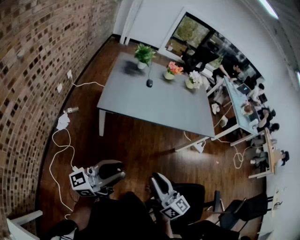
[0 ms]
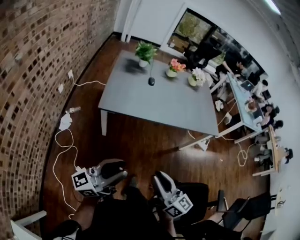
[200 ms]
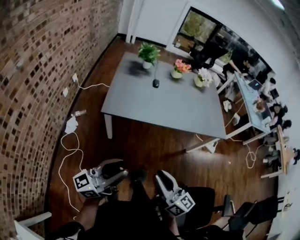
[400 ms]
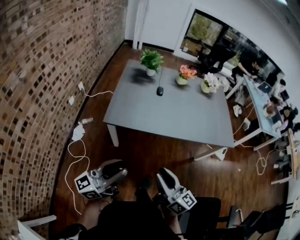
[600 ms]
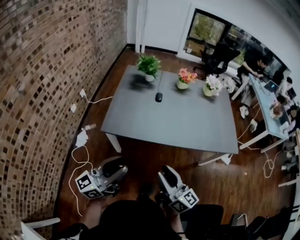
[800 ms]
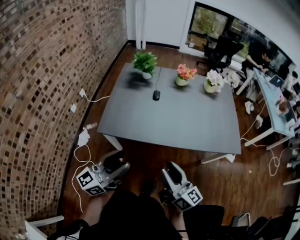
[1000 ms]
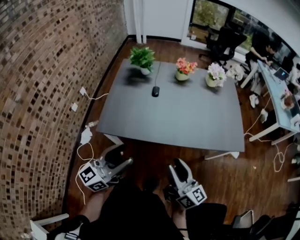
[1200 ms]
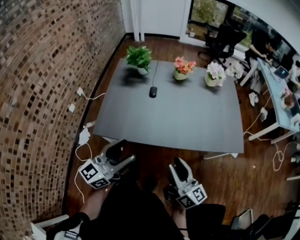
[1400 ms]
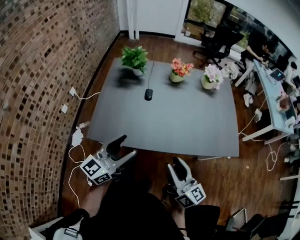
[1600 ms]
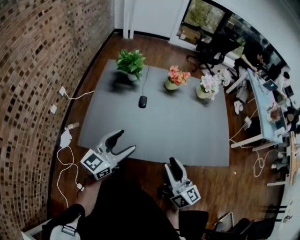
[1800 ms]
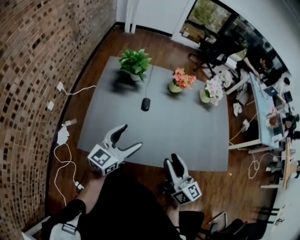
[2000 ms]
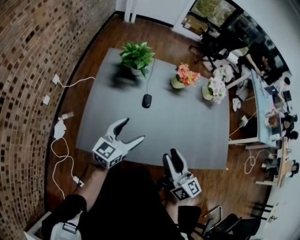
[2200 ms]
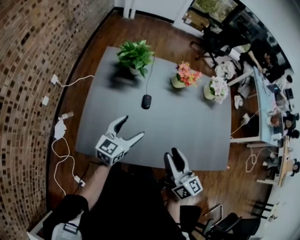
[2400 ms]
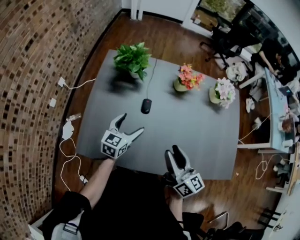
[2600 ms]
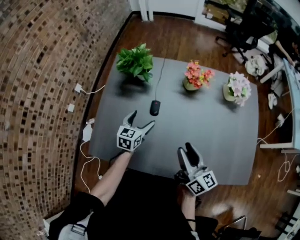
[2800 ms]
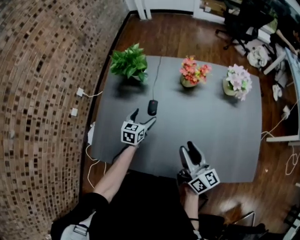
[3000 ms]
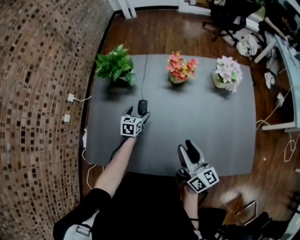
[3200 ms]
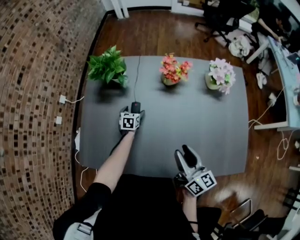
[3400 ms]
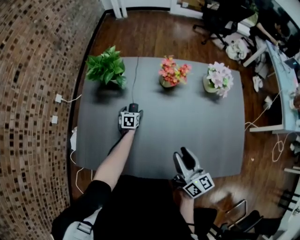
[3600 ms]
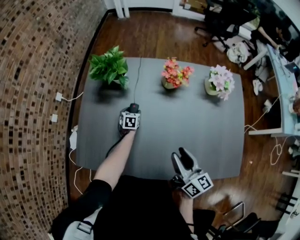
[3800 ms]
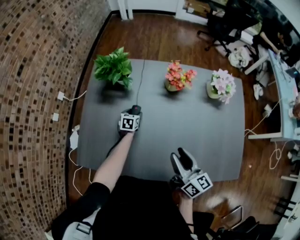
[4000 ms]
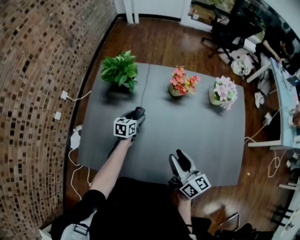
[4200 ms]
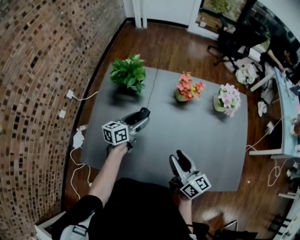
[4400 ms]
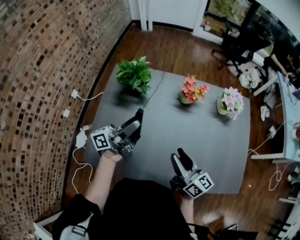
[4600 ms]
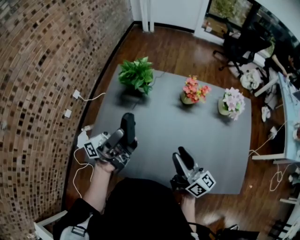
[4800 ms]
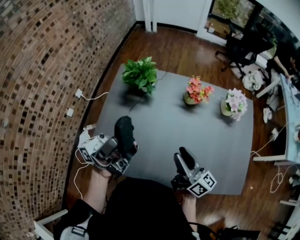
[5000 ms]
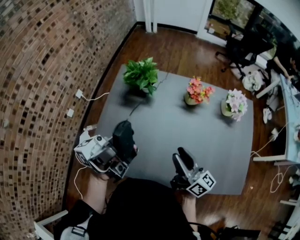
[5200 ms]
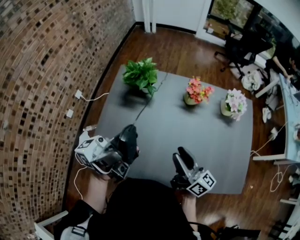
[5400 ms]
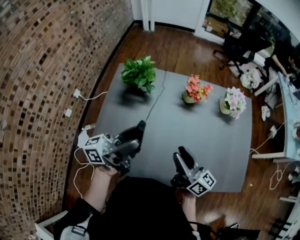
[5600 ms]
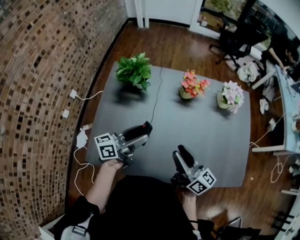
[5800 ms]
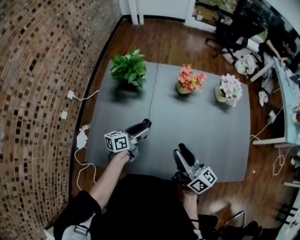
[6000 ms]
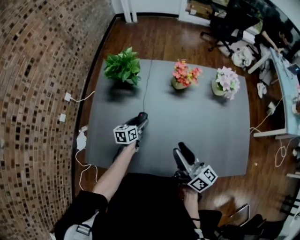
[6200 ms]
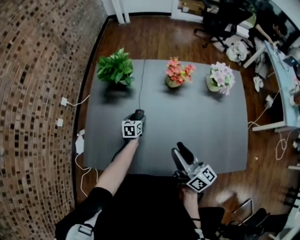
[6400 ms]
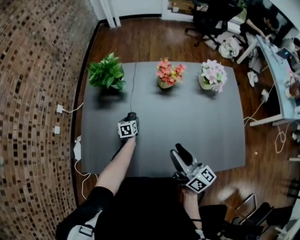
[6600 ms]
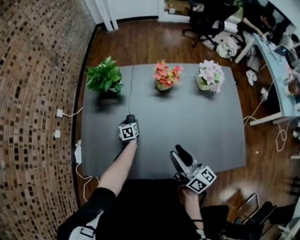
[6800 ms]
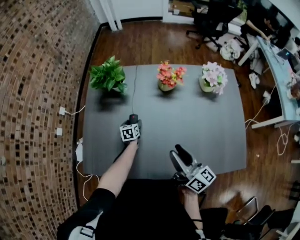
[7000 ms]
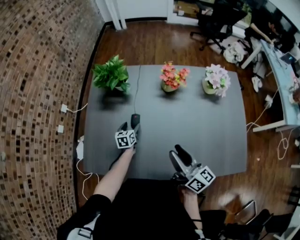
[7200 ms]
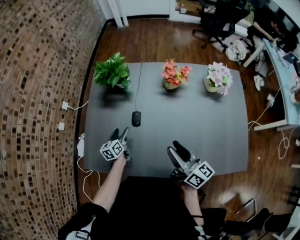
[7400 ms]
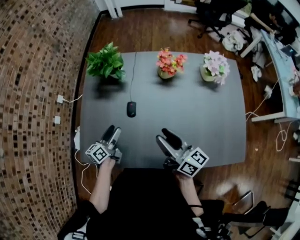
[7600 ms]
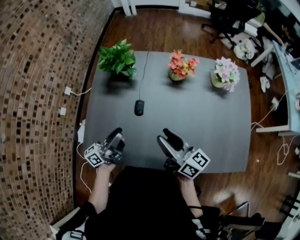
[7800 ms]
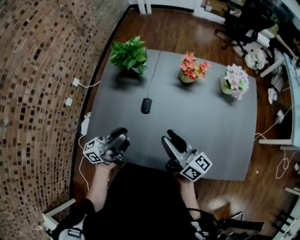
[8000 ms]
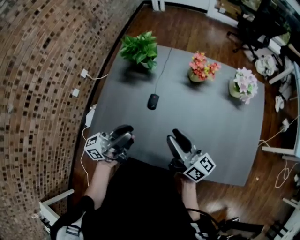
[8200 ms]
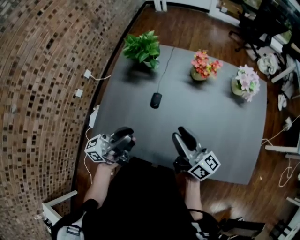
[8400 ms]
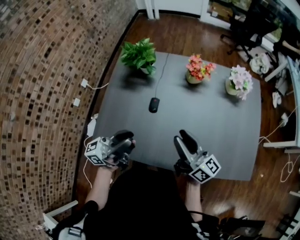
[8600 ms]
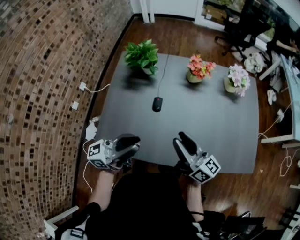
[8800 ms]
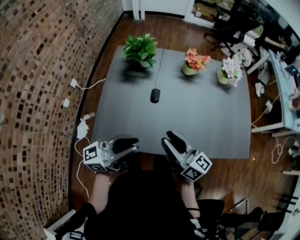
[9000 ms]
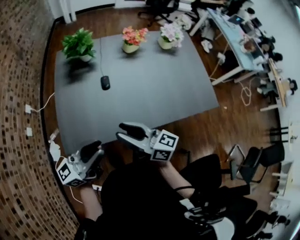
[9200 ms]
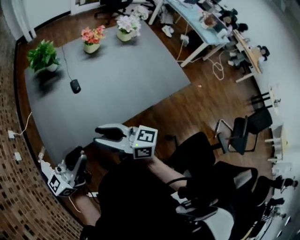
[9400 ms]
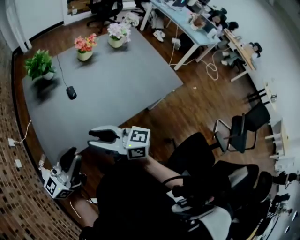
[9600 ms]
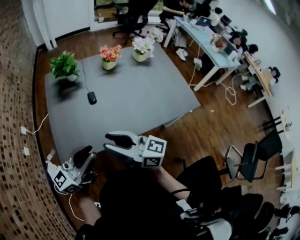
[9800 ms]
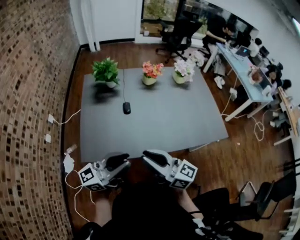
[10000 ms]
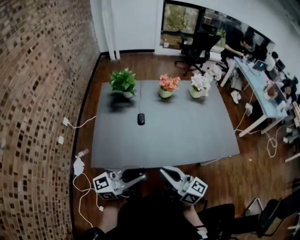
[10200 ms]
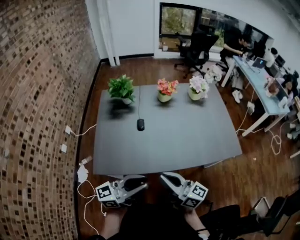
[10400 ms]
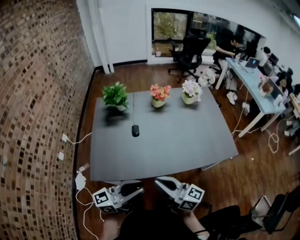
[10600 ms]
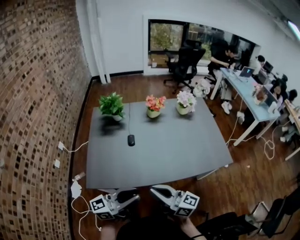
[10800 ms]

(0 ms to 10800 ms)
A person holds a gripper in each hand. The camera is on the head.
0 ms - 1600 ms: Both grippers are carried forward, approximately 40 cm. The left gripper swivels approximately 30 degrees, and opens.
1600 ms - 3000 ms: Both grippers travel together forward and downward, roughly 40 cm. The left gripper points its fingers some 40 degrees further downward.
3000 ms - 4600 ms: The right gripper ends up about 5 cm from where it was, while the left gripper travels upward by some 25 cm, and tilts its fingers approximately 60 degrees upward.
4600 ms - 6200 ms: The left gripper goes some 30 cm downward, and points its fingers roughly 60 degrees further downward.
6200 ms - 7800 ms: The left gripper moves upward and backward, some 20 cm, and angles its fingers upward, by approximately 50 degrees.
7800 ms - 9200 ms: The right gripper is displaced backward and to the left by about 25 cm. Meanwhile the left gripper moves backward and upward, approximately 25 cm, and swivels about 30 degrees.
9200 ms - 10800 ms: The right gripper travels backward and to the right by roughly 15 cm, and closes its fingers; the left gripper travels to the right and backward by roughly 15 cm.

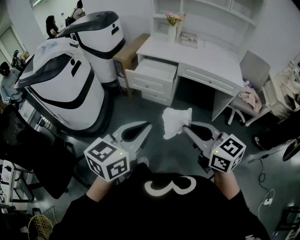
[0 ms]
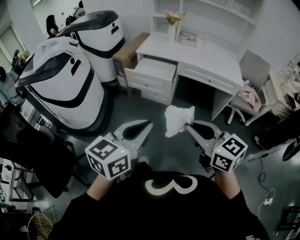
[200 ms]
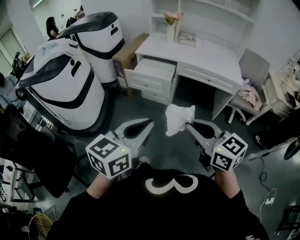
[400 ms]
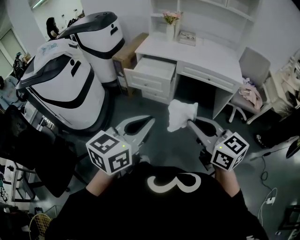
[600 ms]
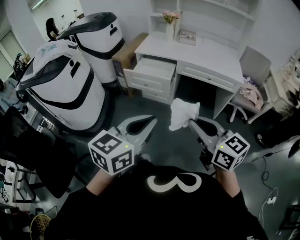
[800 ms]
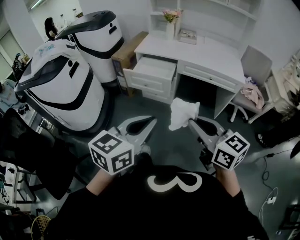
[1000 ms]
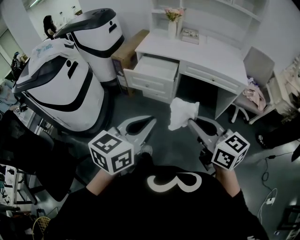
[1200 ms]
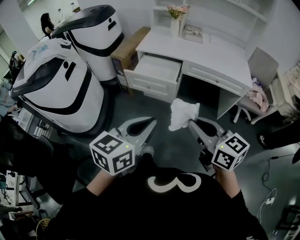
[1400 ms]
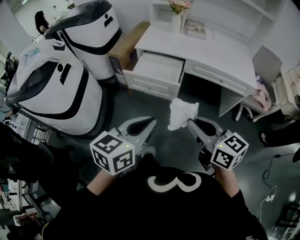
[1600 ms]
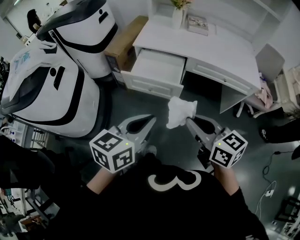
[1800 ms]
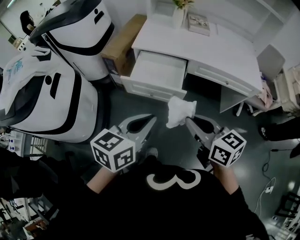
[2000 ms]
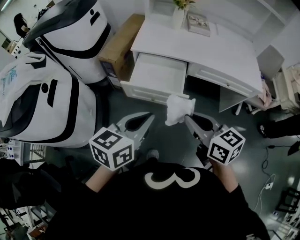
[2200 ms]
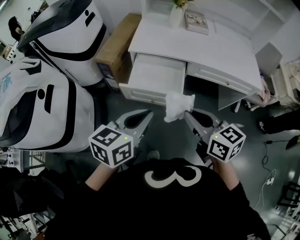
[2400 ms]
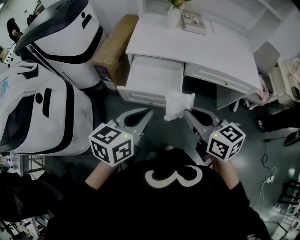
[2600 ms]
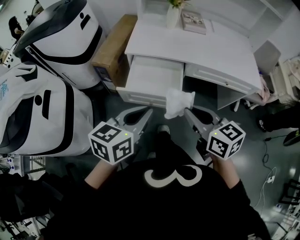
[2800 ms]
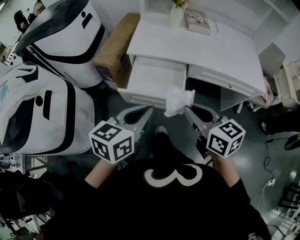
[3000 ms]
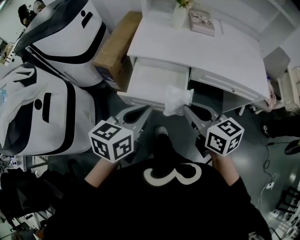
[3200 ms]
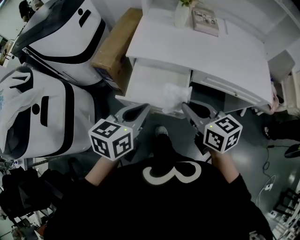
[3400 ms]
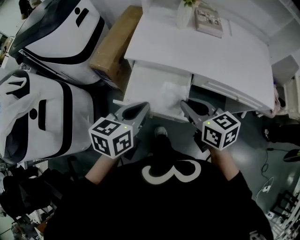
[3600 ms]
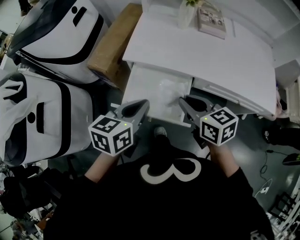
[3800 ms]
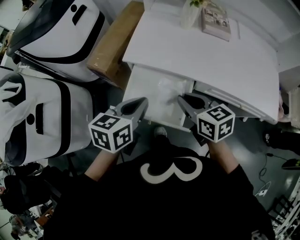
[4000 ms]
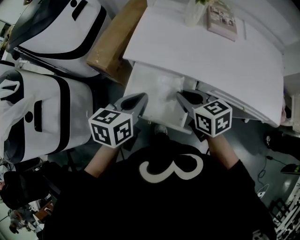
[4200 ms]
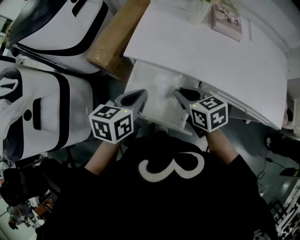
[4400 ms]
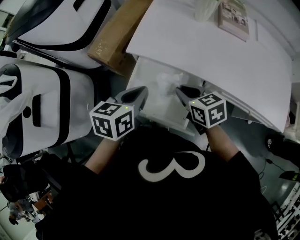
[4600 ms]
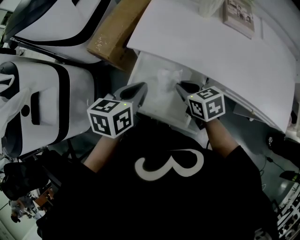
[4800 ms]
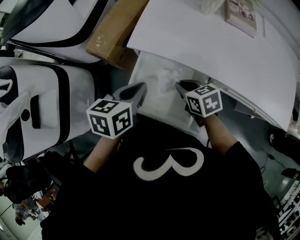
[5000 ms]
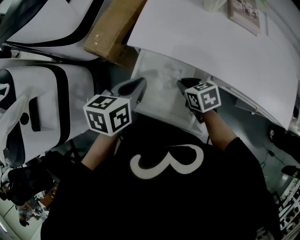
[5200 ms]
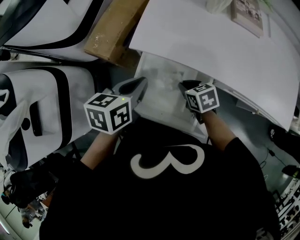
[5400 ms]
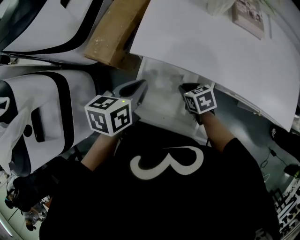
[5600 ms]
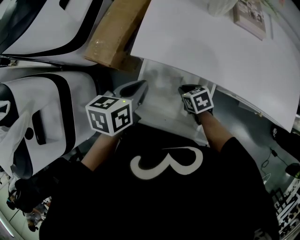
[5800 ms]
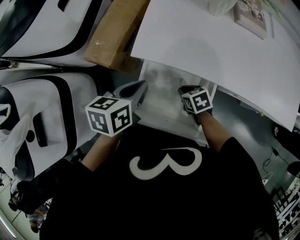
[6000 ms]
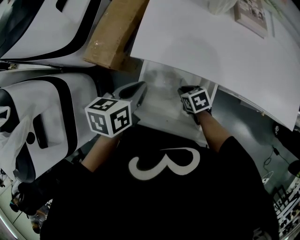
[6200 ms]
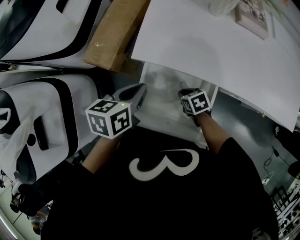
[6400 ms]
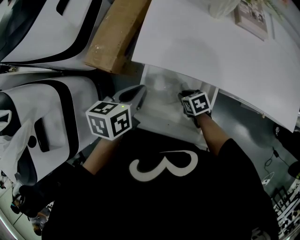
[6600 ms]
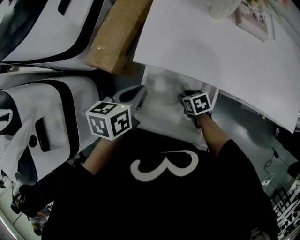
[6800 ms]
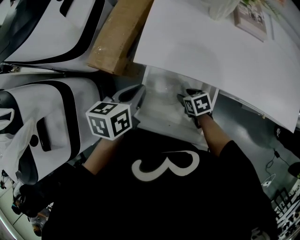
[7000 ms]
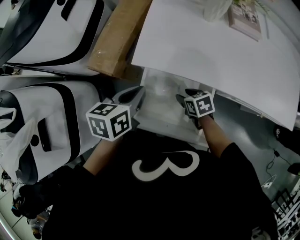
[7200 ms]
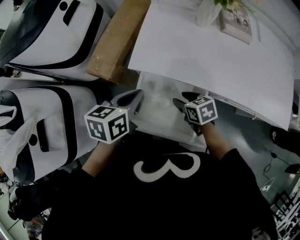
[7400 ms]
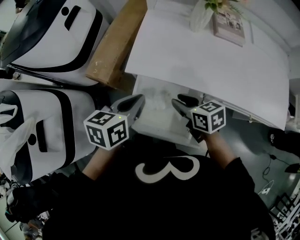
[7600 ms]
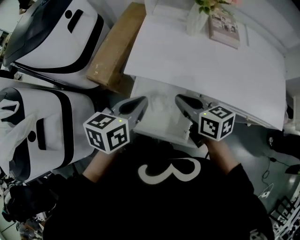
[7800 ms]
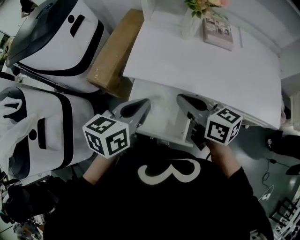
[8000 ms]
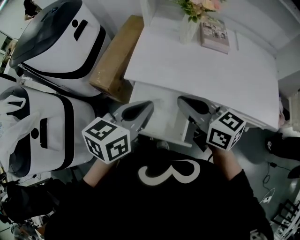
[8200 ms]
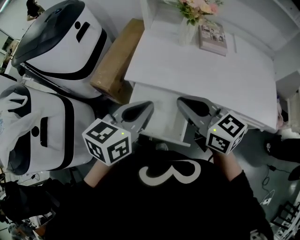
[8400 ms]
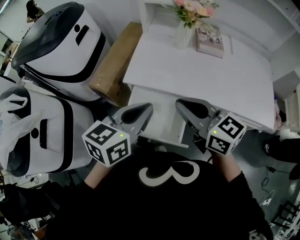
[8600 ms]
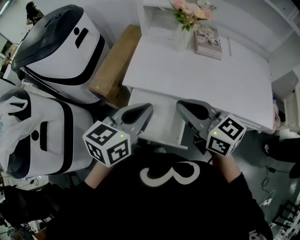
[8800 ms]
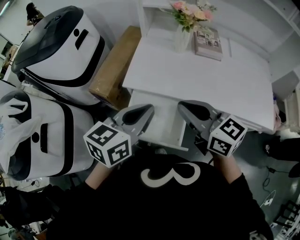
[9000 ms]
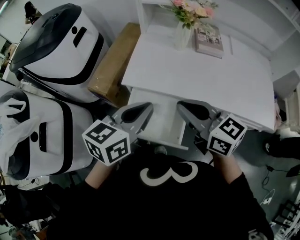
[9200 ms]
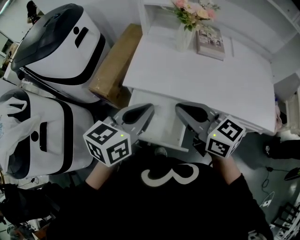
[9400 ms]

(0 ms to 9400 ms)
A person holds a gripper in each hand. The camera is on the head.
0 ms - 1600 ms: The grippers both shift forward by some 20 cm.
1600 ms - 3200 ms: The two grippers go approximately 30 cm forward.
3200 ms - 4800 ms: The grippers both shift forward and downward by roughly 30 cm. The left gripper swivels roughly 20 degrees, while the right gripper turns by approximately 30 degrees.
4800 ms - 6200 ms: The left gripper heads forward, covering roughly 10 cm, while the right gripper is displaced downward by roughly 15 cm.
6200 ms - 7800 ms: The right gripper travels upward by roughly 25 cm, angles its fingers upward, by roughly 40 degrees, and opens and closes again. Meanwhile the left gripper moves upward, to the right and backward, roughly 15 cm.
7800 ms - 9400 ms: Both grippers travel together upward and backward, some 15 cm. The right gripper rotates about 20 degrees.

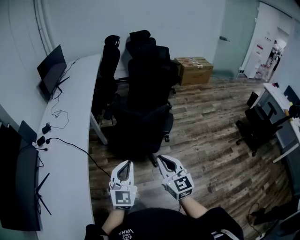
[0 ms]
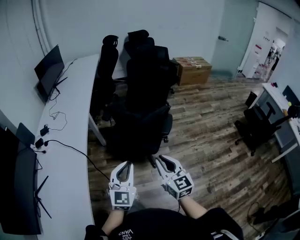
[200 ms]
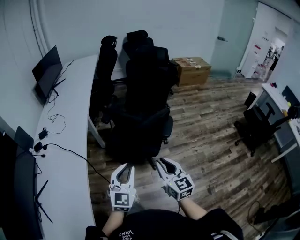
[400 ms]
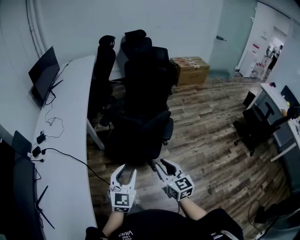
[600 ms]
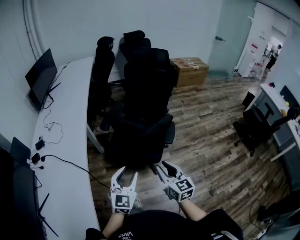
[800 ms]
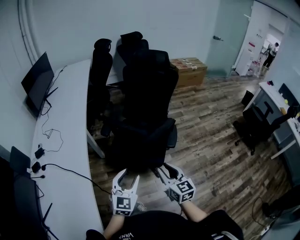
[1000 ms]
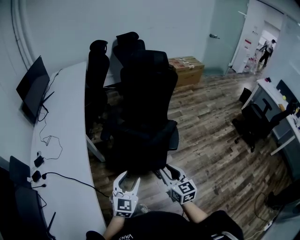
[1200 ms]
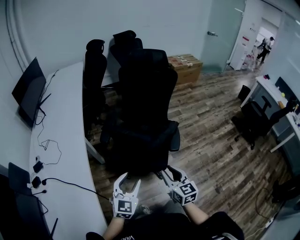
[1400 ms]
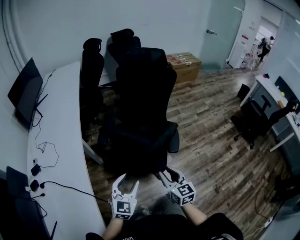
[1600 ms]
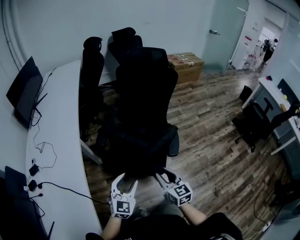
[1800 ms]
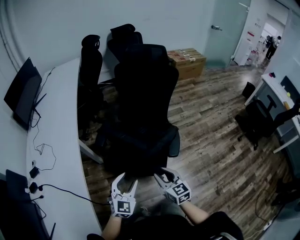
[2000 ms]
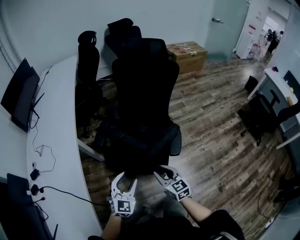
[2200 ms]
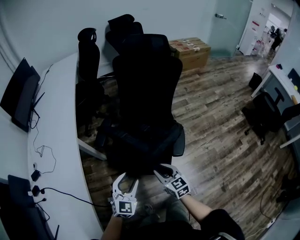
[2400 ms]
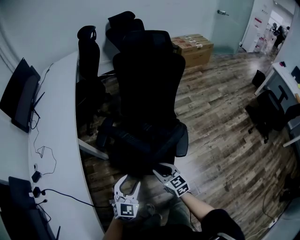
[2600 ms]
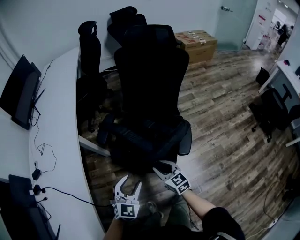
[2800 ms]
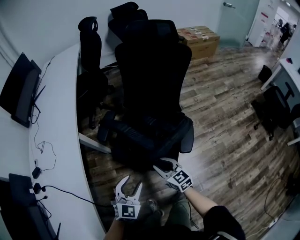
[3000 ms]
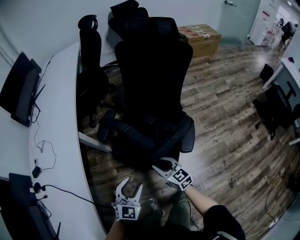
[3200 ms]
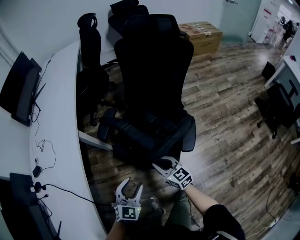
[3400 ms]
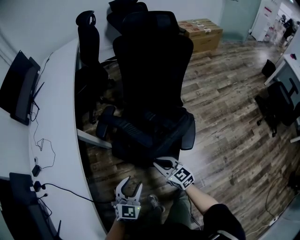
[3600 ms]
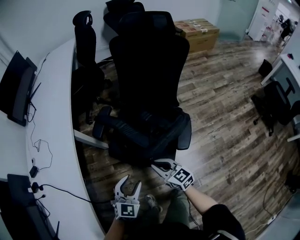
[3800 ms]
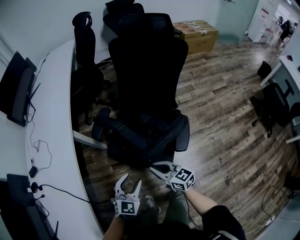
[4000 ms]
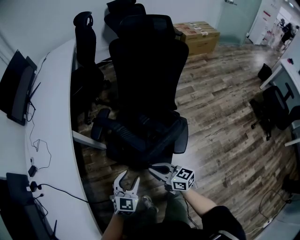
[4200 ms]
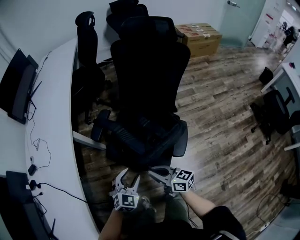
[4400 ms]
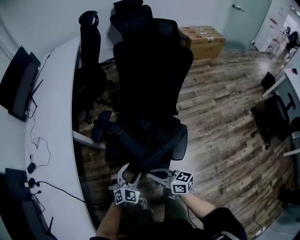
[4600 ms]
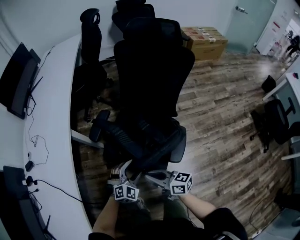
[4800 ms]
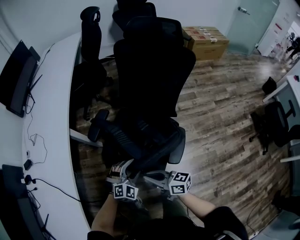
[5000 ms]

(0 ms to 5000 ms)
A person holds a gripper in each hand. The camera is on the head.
0 ms - 1600 ms: The right gripper is displaced forward and downward by approximately 25 cm, while the left gripper goes roughly 30 cm forward, downward and to the left, rotates roughly 20 degrees, and opens.
1600 ms - 3400 ms: The right gripper moves downward and forward, roughly 25 cm, and changes its angle by approximately 30 degrees, while the left gripper moves downward and forward, some 15 cm.
3400 ms - 5000 ms: The right gripper goes approximately 10 cm upward, and turns by some 40 degrees. Meanwhile the left gripper moves to the right and forward, roughly 15 cm, and turns by roughly 30 degrees.
